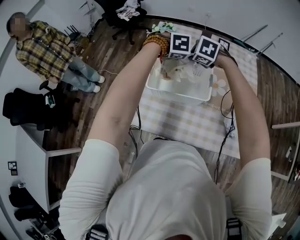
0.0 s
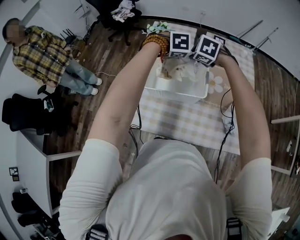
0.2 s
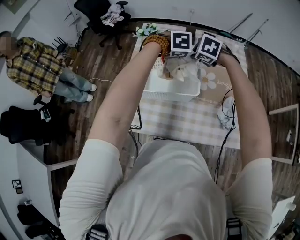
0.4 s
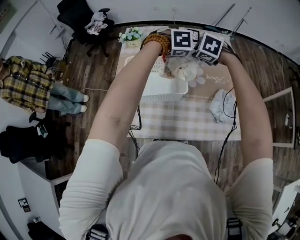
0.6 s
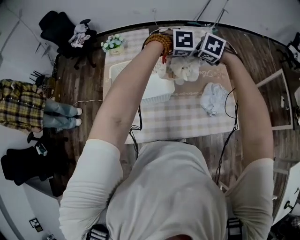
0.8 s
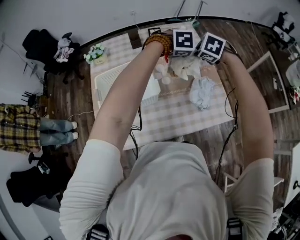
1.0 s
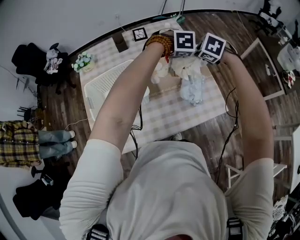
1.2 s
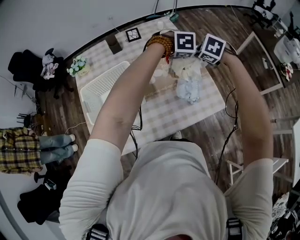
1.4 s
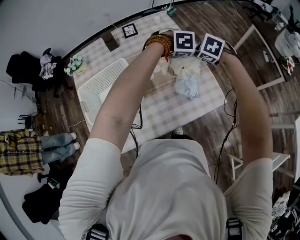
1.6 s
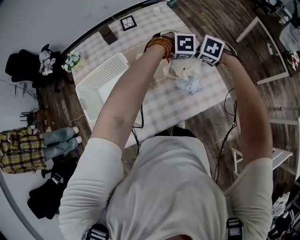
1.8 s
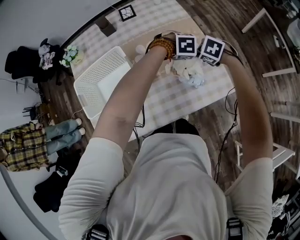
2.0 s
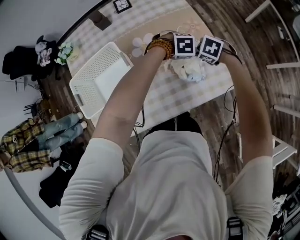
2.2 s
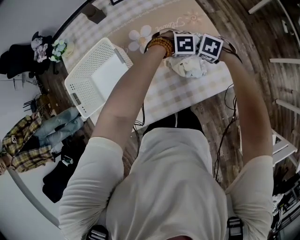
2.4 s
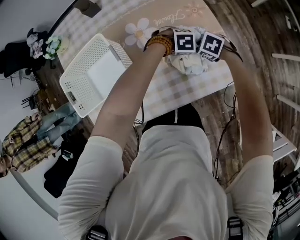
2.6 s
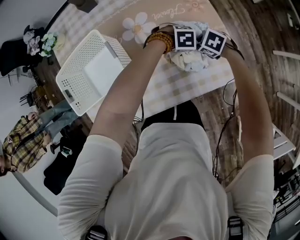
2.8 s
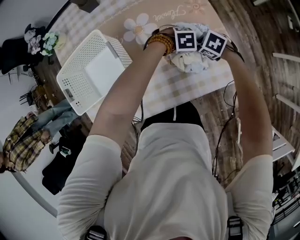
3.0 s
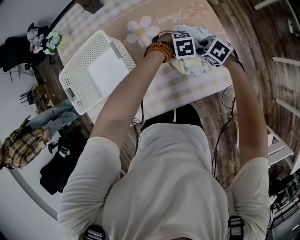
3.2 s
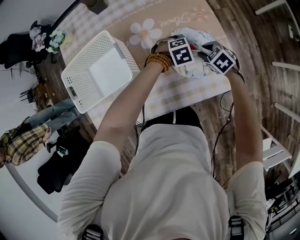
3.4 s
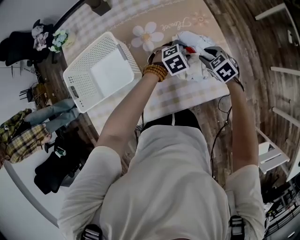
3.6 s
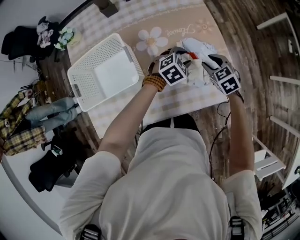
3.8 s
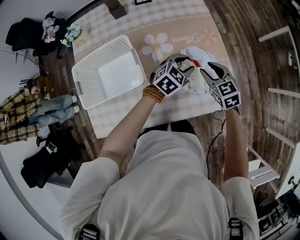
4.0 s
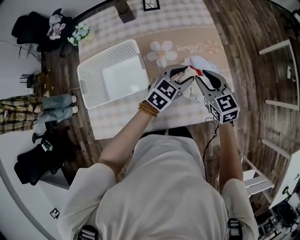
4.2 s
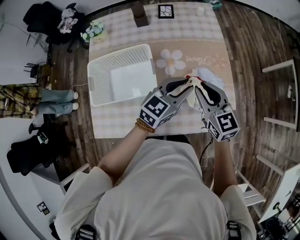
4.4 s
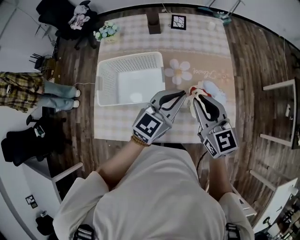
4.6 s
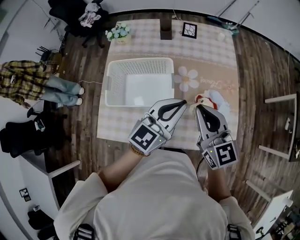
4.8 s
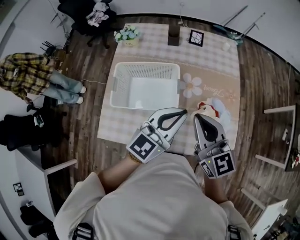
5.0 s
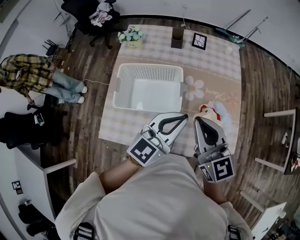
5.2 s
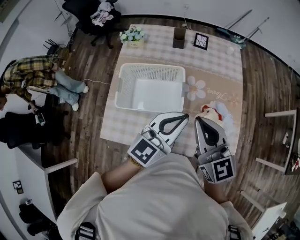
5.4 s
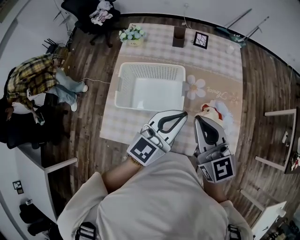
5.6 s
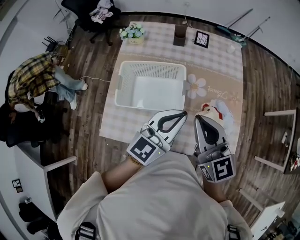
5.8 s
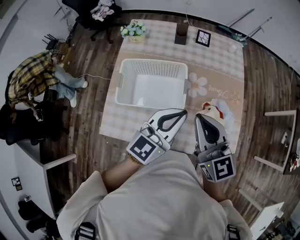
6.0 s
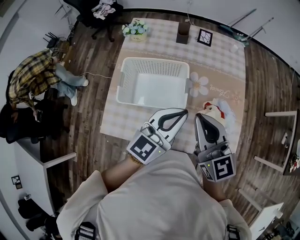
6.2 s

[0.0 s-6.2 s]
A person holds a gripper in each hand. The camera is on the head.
0.0 to 1.6 s: The pair of grippers is taken roughly 50 cm. The right gripper changes its angle by roughly 40 degrees, while the left gripper changes its angle by roughly 40 degrees.
1.6 to 3.2 s: Both grippers travel together downward, about 25 cm. The right gripper swivels approximately 20 degrees.
3.2 to 4.6 s: The two grippers go approximately 35 cm upward. The right gripper angles its fingers upward, by some 50 degrees; the left gripper angles its fingers upward, by roughly 60 degrees, and closes up.
4.6 to 6.2 s: Both grippers move to the left and upward, some 10 cm.

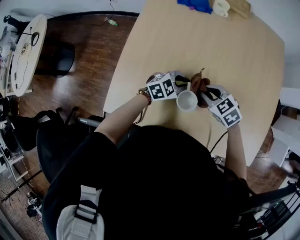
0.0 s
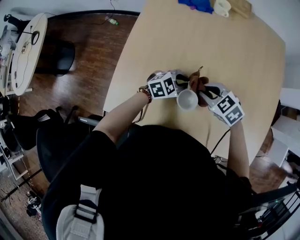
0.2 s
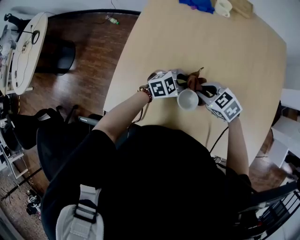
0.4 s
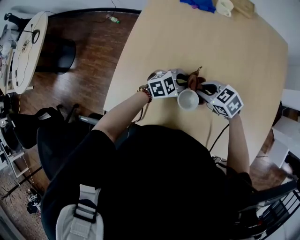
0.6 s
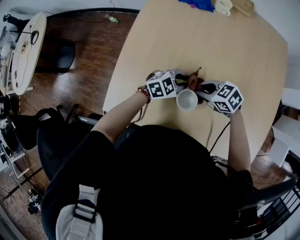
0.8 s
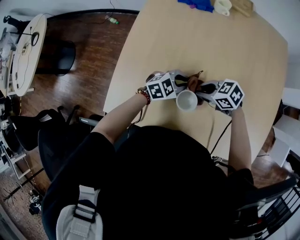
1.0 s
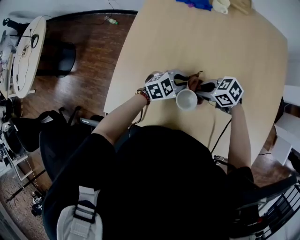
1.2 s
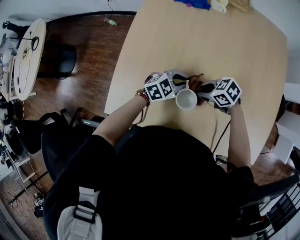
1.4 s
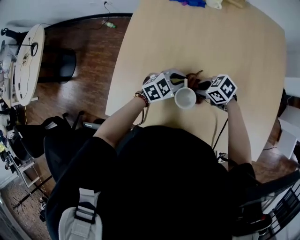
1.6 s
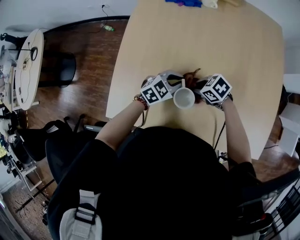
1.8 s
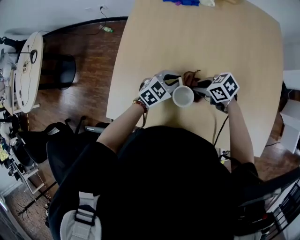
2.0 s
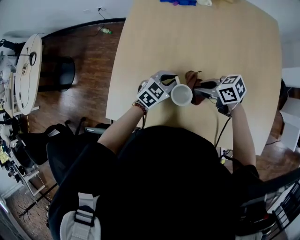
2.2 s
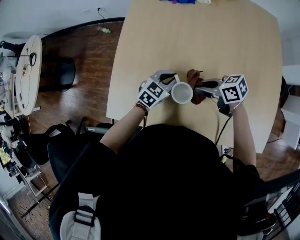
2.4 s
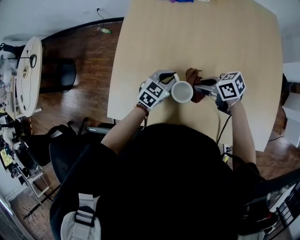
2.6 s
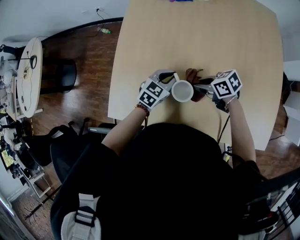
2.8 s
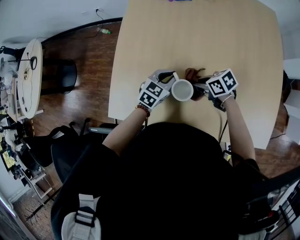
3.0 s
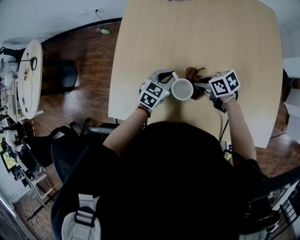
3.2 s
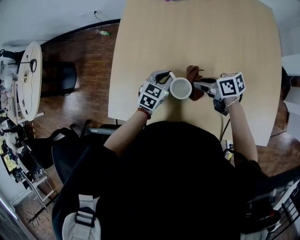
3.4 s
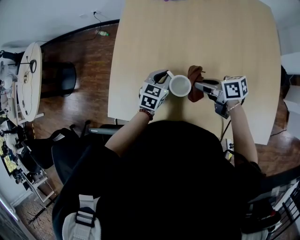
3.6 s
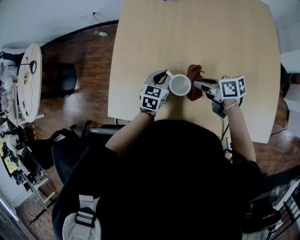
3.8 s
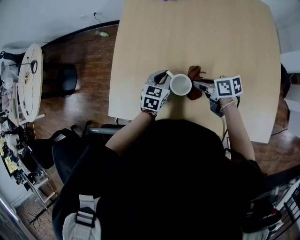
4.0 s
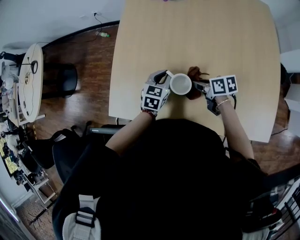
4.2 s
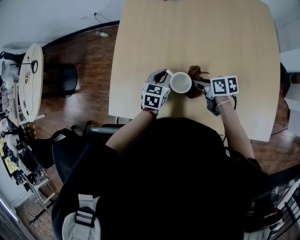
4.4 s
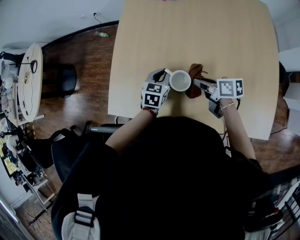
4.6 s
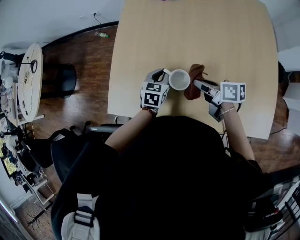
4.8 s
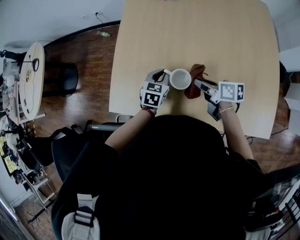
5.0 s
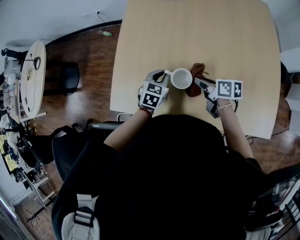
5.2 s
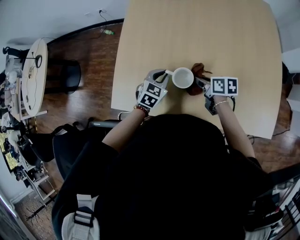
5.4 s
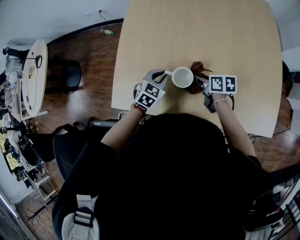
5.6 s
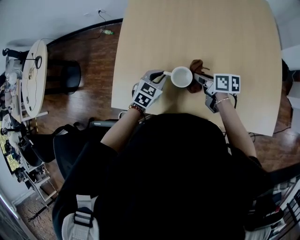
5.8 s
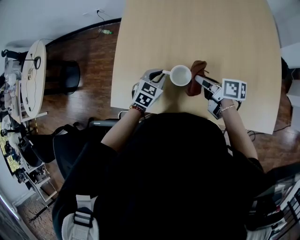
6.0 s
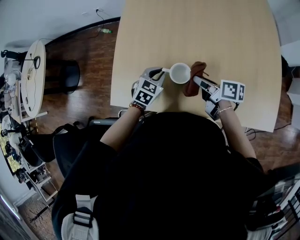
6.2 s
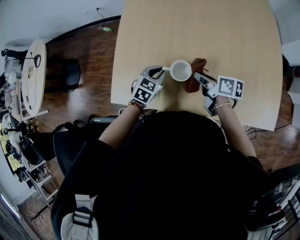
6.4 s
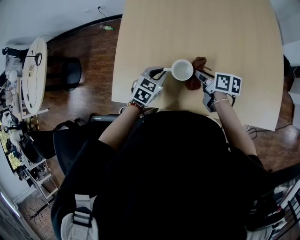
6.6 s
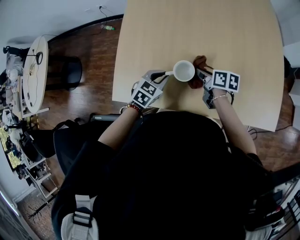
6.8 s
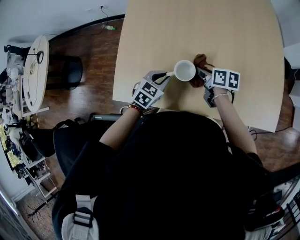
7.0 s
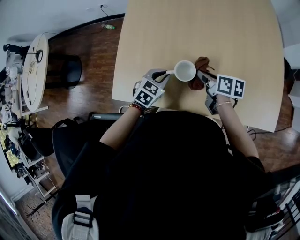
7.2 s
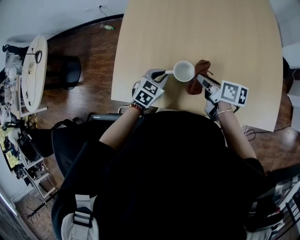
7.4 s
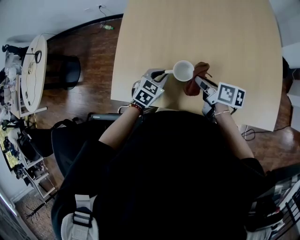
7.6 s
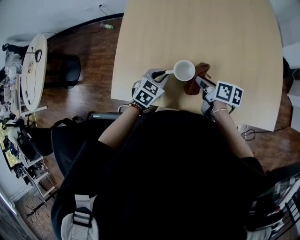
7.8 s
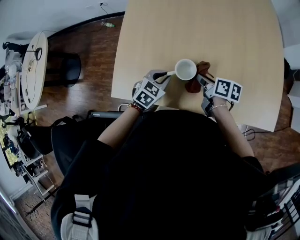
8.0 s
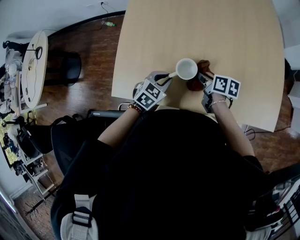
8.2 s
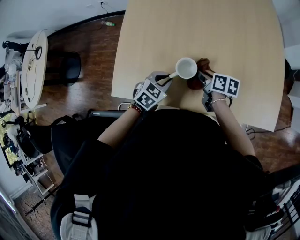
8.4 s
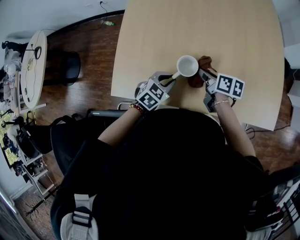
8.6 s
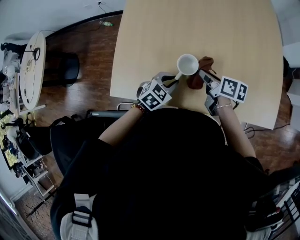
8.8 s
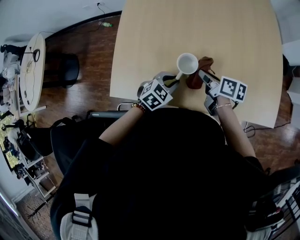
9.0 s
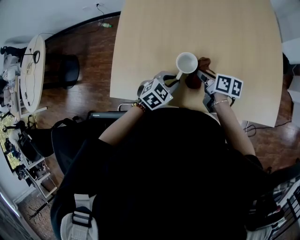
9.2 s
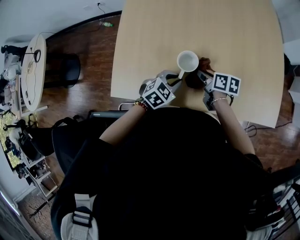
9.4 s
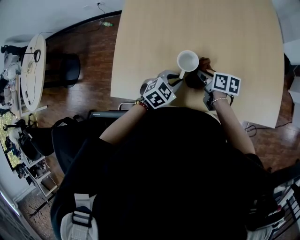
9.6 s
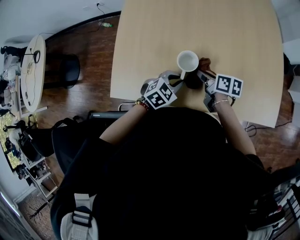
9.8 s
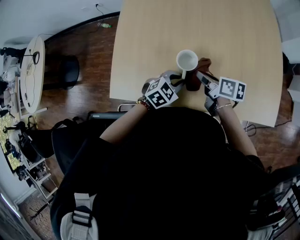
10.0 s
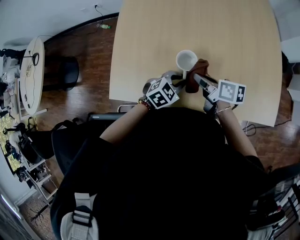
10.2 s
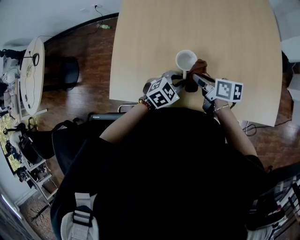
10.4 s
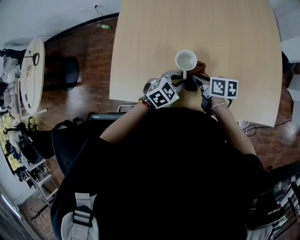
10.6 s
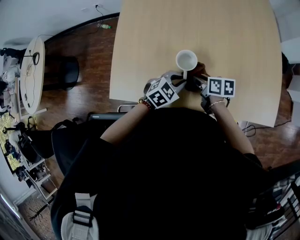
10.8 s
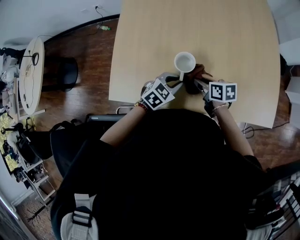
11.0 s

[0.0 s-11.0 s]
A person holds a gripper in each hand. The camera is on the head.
0.0 to 1.6 s: The right gripper shifts approximately 5 cm downward, and rotates roughly 30 degrees.
1.6 to 3.2 s: The right gripper moves roughly 5 cm upward and comes back, and swivels some 30 degrees. The left gripper turns by some 20 degrees.
3.2 to 4.8 s: The left gripper turns by roughly 20 degrees, while the right gripper swings up and down, some 5 cm each way, with 2 reversals, and turns by some 30 degrees.
4.8 to 6.2 s: The left gripper shifts by approximately 5 cm, and swivels roughly 20 degrees.
6.2 to 7.8 s: The grippers move only a little.
7.8 to 9.4 s: The left gripper heads to the right, covering some 5 cm, while the right gripper swings up and down, some 5 cm each way, with 2 reversals.

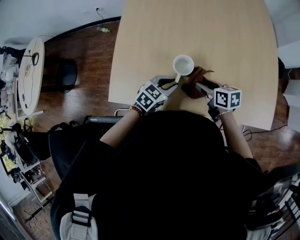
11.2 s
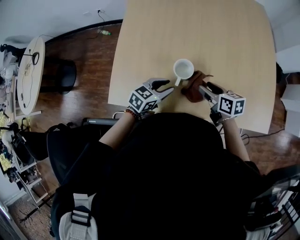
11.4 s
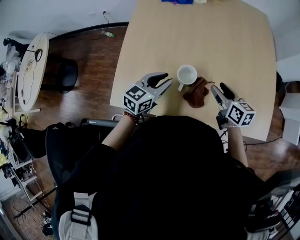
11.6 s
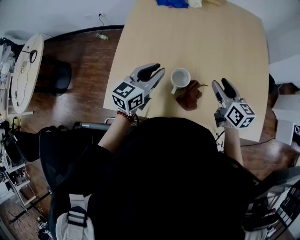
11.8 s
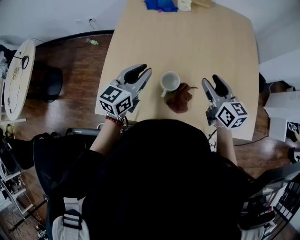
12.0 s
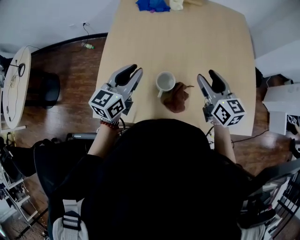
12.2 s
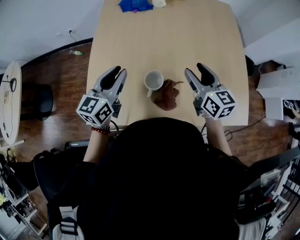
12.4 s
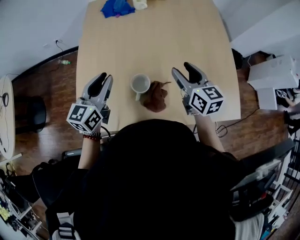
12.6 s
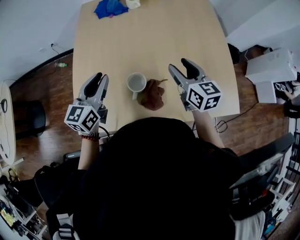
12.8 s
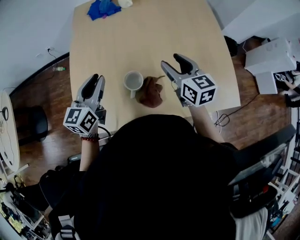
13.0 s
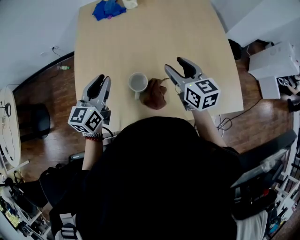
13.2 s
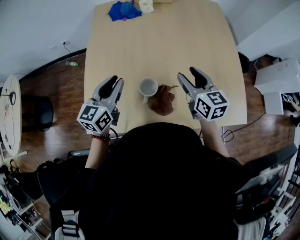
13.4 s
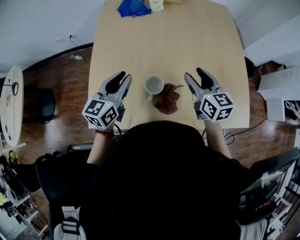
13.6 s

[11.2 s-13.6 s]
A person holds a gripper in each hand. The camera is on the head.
11.2 to 12.4 s: The left gripper goes some 25 cm upward, to the left and forward, and tilts its fingers about 30 degrees upward. The right gripper moves upward and forward, roughly 20 cm, and turns by roughly 40 degrees.
12.4 to 13.6 s: The grippers move only a little.

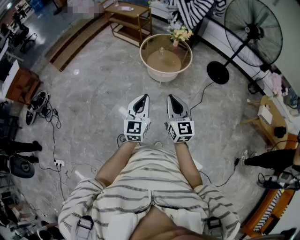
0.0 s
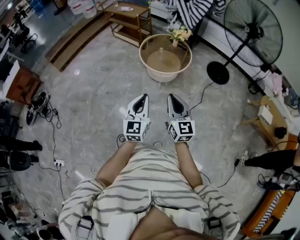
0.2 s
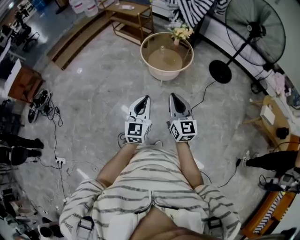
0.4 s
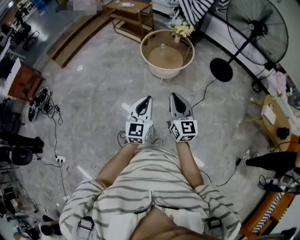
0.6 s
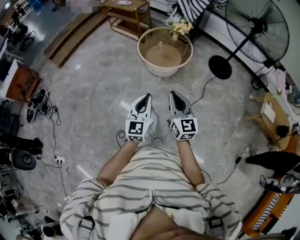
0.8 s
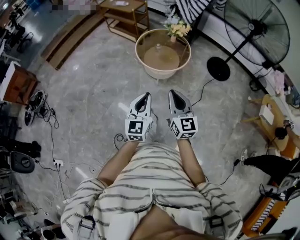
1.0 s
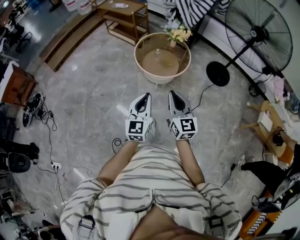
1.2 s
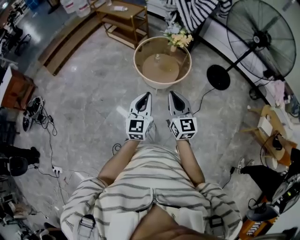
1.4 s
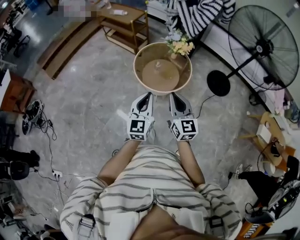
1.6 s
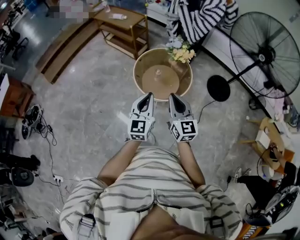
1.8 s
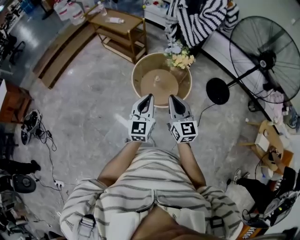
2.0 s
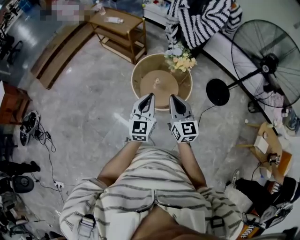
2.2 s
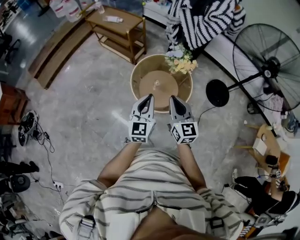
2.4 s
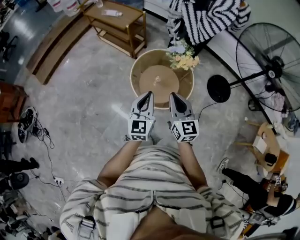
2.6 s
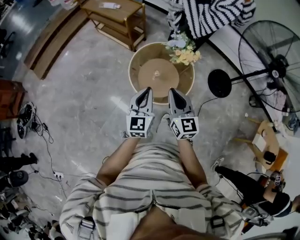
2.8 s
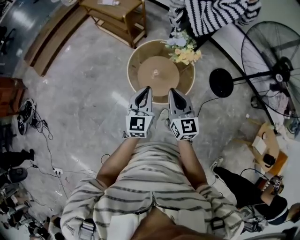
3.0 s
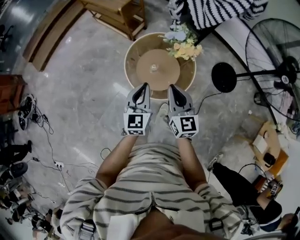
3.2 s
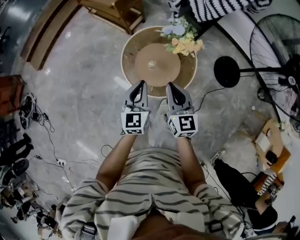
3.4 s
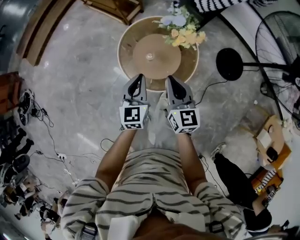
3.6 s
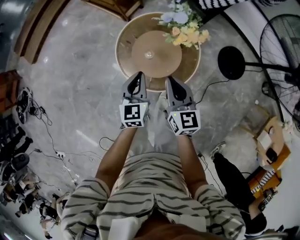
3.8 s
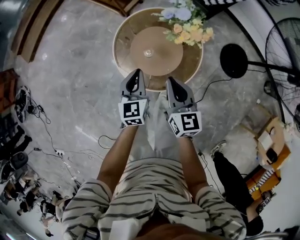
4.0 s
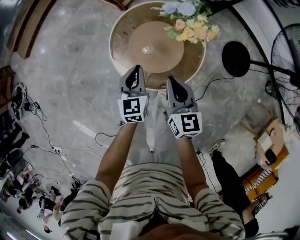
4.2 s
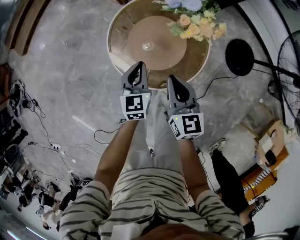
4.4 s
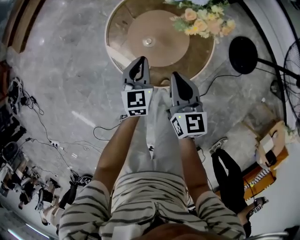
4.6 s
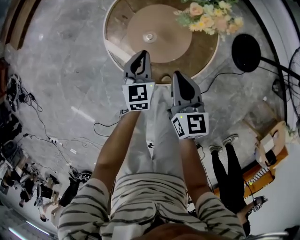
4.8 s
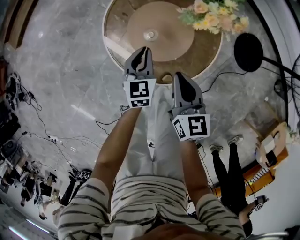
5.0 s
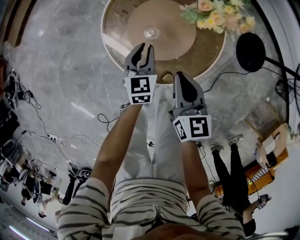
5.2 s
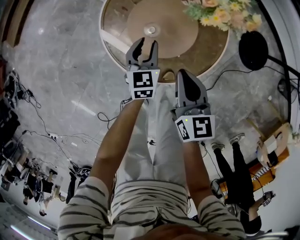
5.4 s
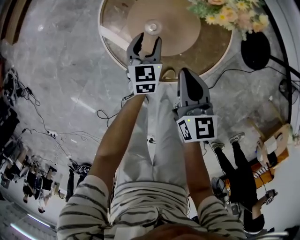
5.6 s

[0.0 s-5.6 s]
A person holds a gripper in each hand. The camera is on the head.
0.0 to 1.4 s: The grippers both shift forward by some 20 cm.
1.4 to 2.8 s: Both grippers travel together forward, roughly 35 cm.
2.8 to 4.2 s: Both grippers move downward and forward, about 30 cm. The left gripper turns by roughly 20 degrees.
4.2 to 5.6 s: Both grippers move downward, approximately 15 cm. The left gripper opens its fingers.
